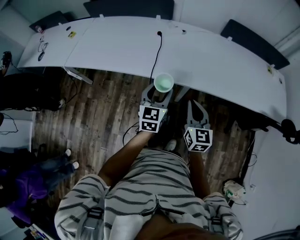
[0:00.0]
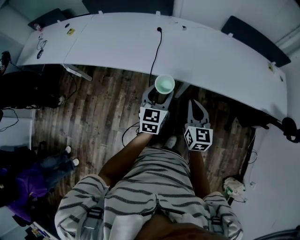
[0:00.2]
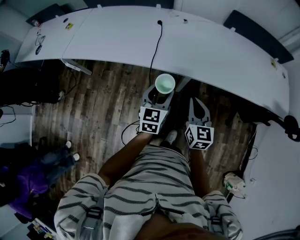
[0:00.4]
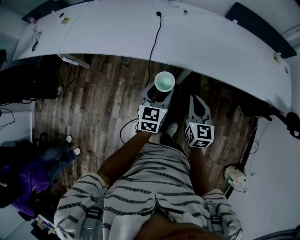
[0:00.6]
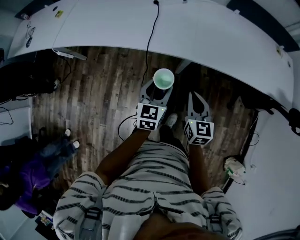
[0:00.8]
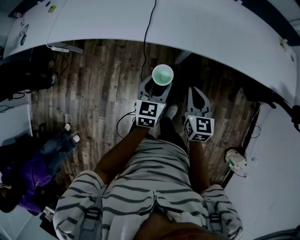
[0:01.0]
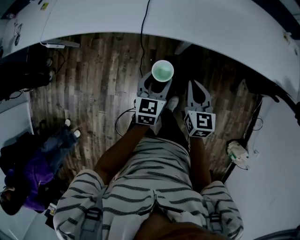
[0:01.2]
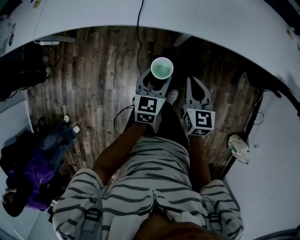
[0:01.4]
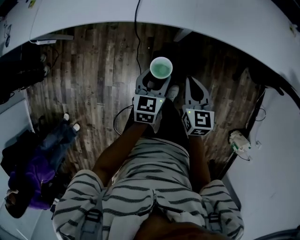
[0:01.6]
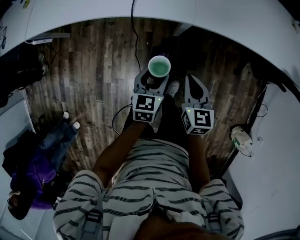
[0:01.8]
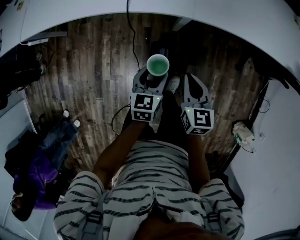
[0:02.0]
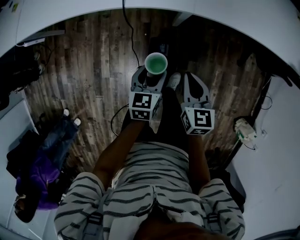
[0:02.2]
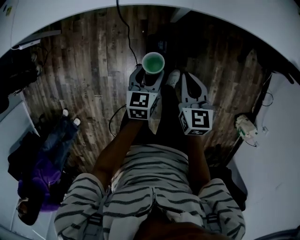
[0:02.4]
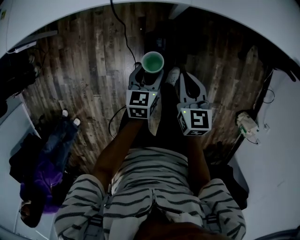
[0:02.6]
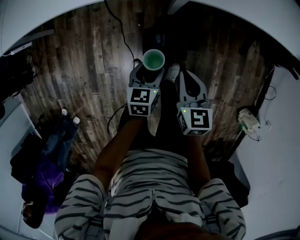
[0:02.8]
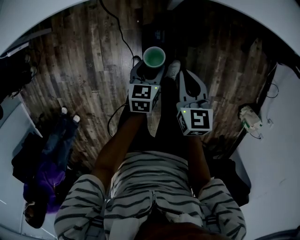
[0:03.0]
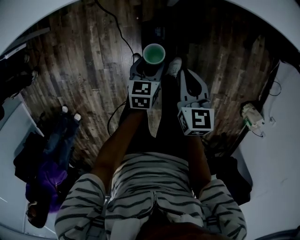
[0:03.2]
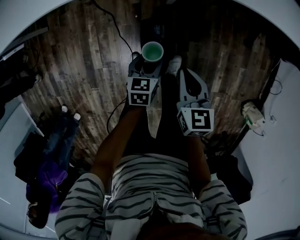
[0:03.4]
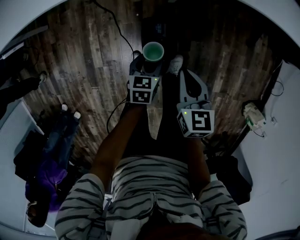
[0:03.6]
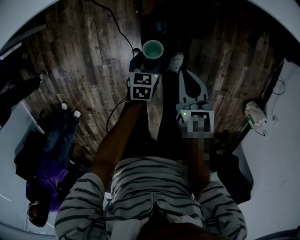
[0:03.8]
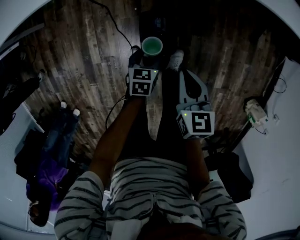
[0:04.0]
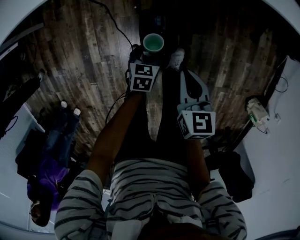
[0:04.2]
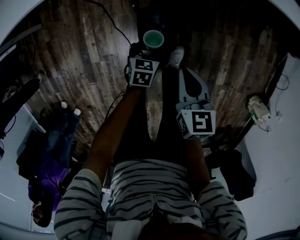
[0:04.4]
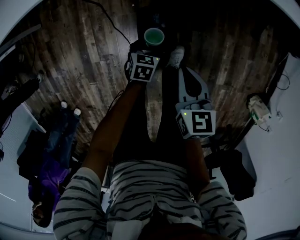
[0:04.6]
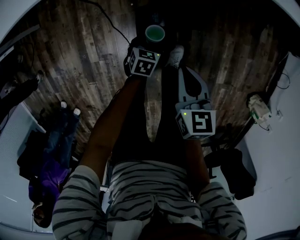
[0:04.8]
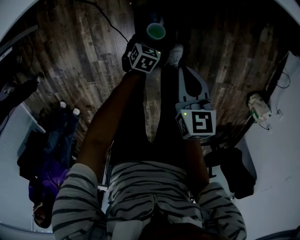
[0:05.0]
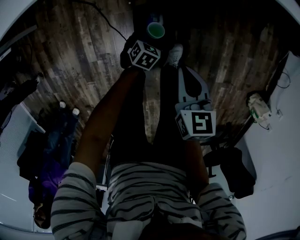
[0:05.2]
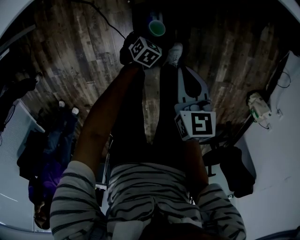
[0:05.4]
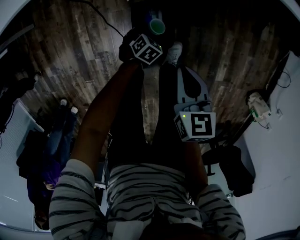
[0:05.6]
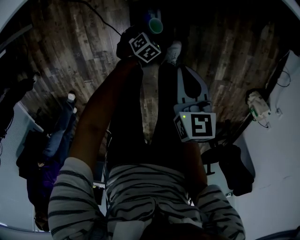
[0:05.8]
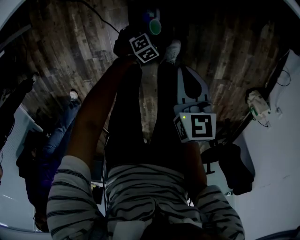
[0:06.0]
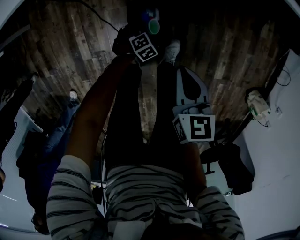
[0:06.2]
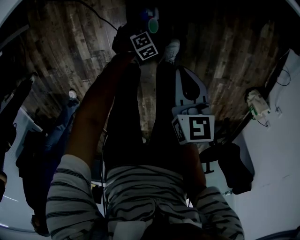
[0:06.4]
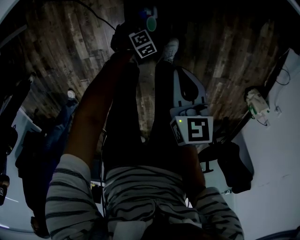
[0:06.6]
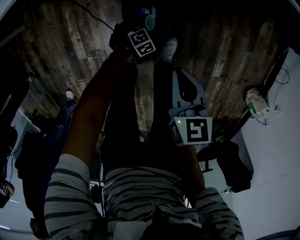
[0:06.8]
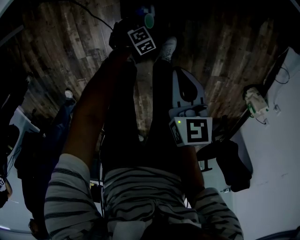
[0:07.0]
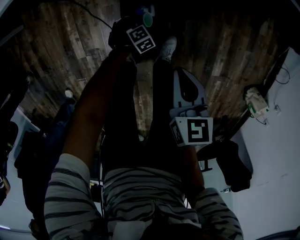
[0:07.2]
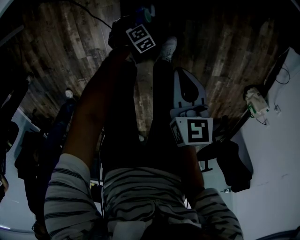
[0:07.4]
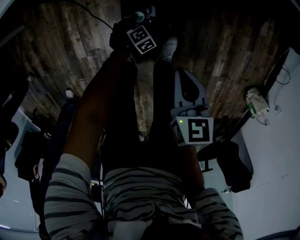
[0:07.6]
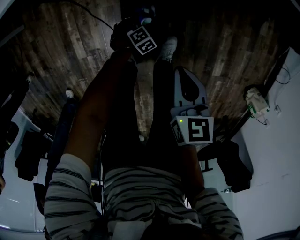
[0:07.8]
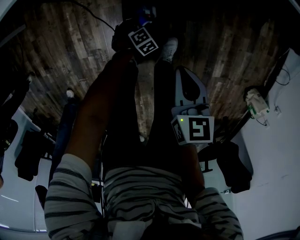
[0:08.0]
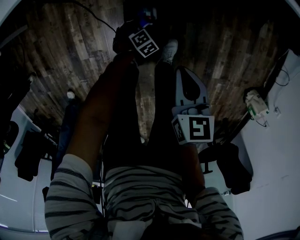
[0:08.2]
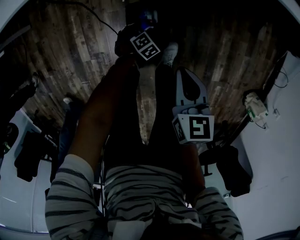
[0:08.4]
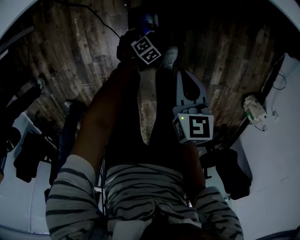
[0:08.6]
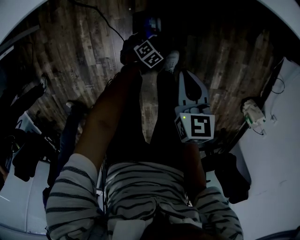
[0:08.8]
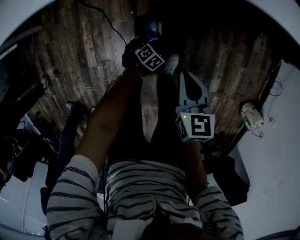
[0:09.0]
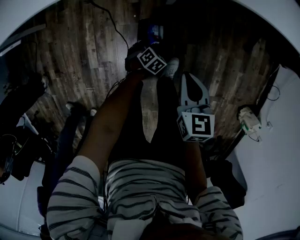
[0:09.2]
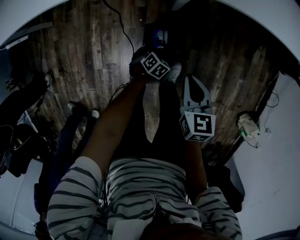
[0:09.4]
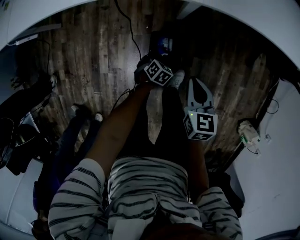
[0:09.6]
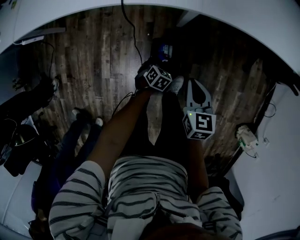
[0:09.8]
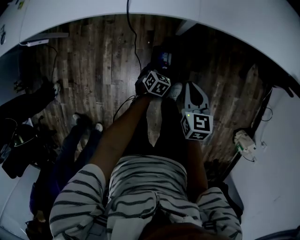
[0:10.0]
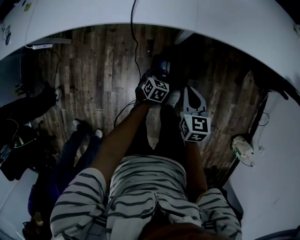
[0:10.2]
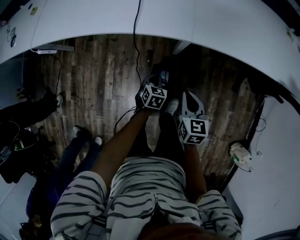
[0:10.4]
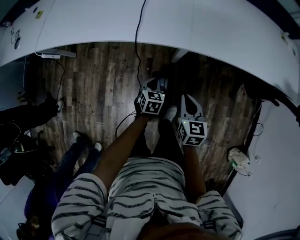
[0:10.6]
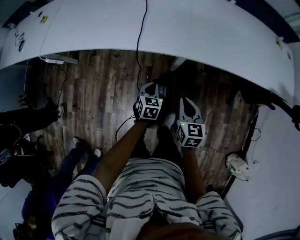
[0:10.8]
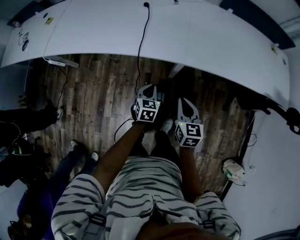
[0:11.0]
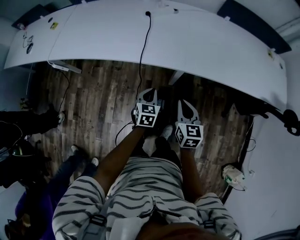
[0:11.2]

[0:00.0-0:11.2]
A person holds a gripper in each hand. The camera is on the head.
0:00.0 to 0:01.6: The right gripper goes approximately 15 cm downward; the left gripper goes roughly 20 cm downward and backward, and turns by approximately 20 degrees.
0:01.6 to 0:03.2: Both grippers move downward, approximately 20 cm.
0:03.2 to 0:04.8: The left gripper is displaced downward by about 20 cm, and changes its angle by some 20 degrees. Meanwhile the right gripper is displaced downward by about 5 cm.
0:04.8 to 0:06.4: The left gripper goes about 15 cm downward, and rotates around the line of its fingers by some 50 degrees, clockwise from behind.
0:06.4 to 0:08.0: The grippers stay close to where they were, moving slightly.
0:08.0 to 0:09.6: The left gripper is displaced upward by roughly 20 cm, changes its angle by some 30 degrees, and closes. The right gripper is displaced upward by about 10 cm.
0:09.6 to 0:11.2: The left gripper moves upward, approximately 35 cm, and tilts its fingers approximately 30 degrees upward. Meanwhile the right gripper heads upward, covering roughly 20 cm.

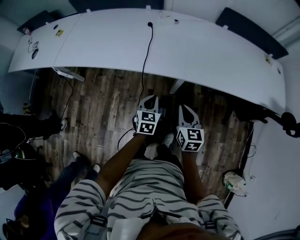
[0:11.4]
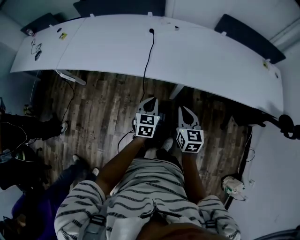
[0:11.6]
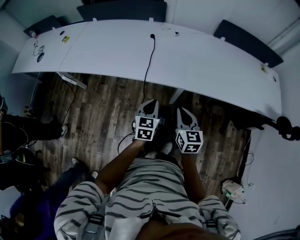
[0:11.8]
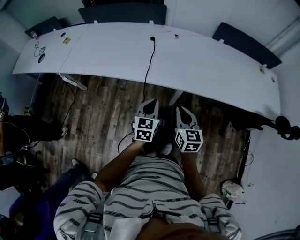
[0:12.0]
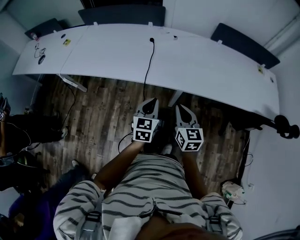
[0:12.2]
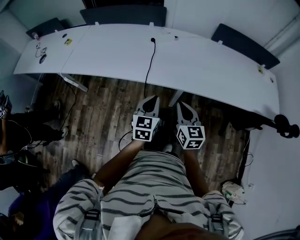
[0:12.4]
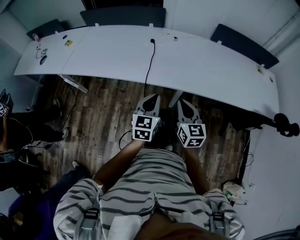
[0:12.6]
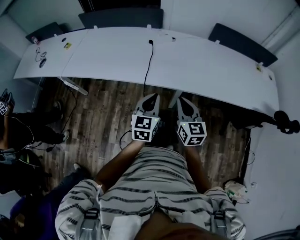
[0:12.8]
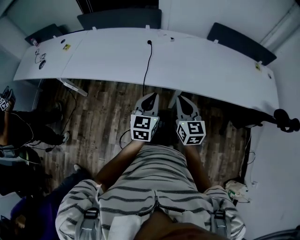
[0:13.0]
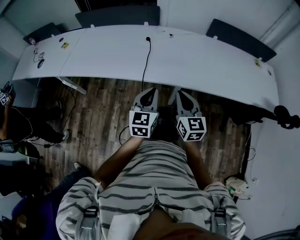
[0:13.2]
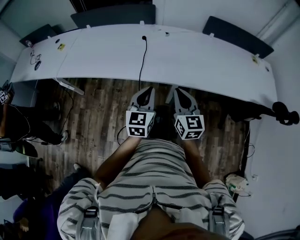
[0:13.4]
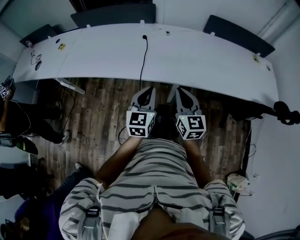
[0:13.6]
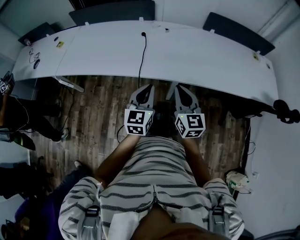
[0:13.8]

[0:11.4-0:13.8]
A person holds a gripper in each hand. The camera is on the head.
0:11.4 to 0:12.6: The left gripper shifts approximately 15 cm upward, while the right gripper heads upward, covering about 10 cm.
0:12.6 to 0:13.8: The grippers move only a little.

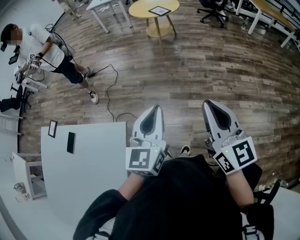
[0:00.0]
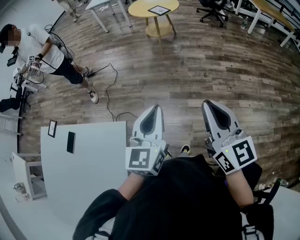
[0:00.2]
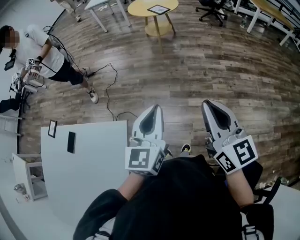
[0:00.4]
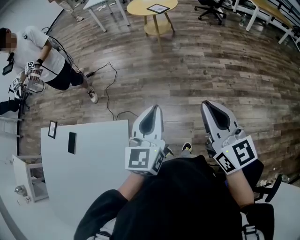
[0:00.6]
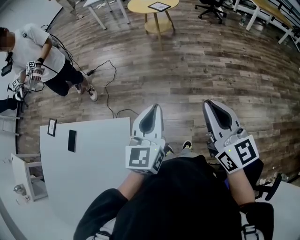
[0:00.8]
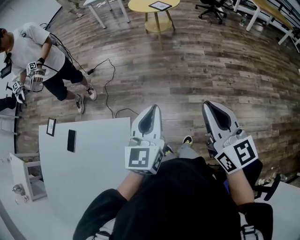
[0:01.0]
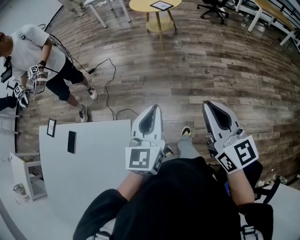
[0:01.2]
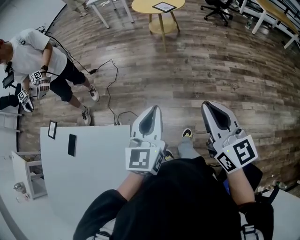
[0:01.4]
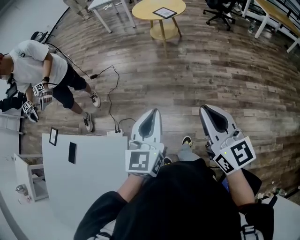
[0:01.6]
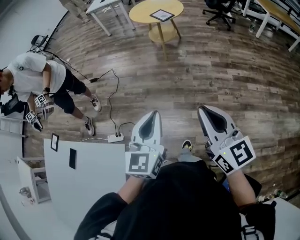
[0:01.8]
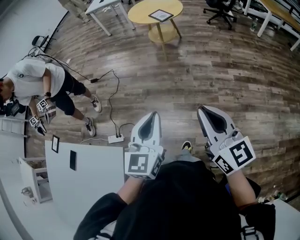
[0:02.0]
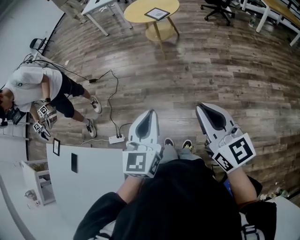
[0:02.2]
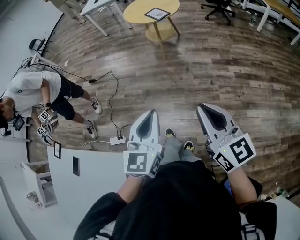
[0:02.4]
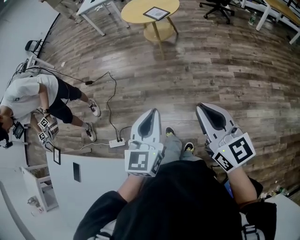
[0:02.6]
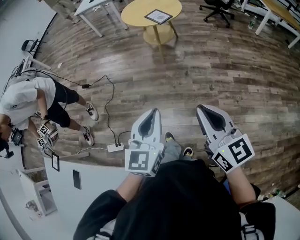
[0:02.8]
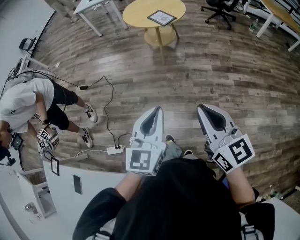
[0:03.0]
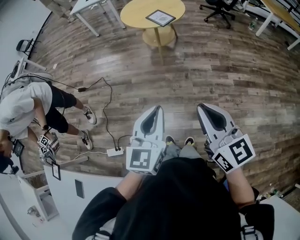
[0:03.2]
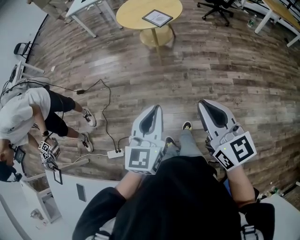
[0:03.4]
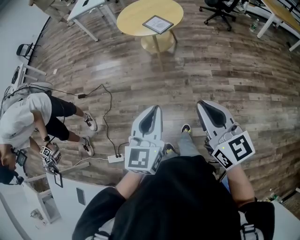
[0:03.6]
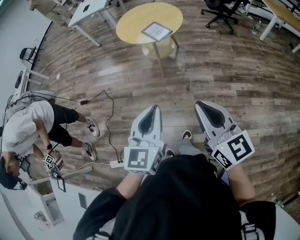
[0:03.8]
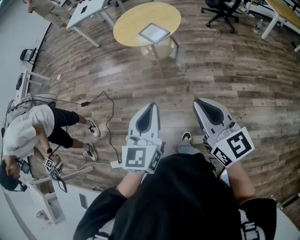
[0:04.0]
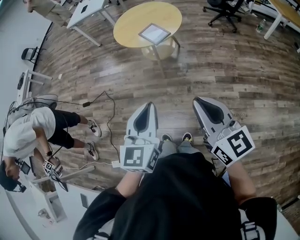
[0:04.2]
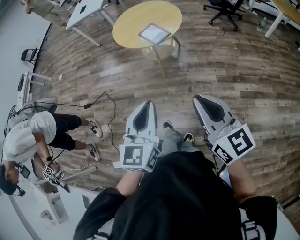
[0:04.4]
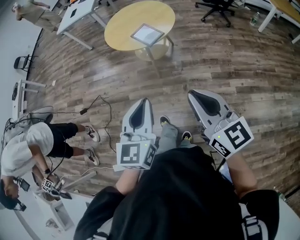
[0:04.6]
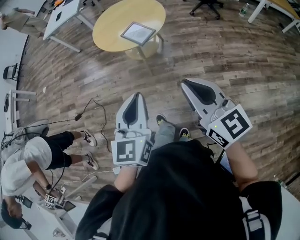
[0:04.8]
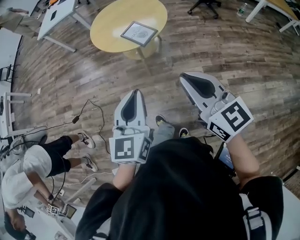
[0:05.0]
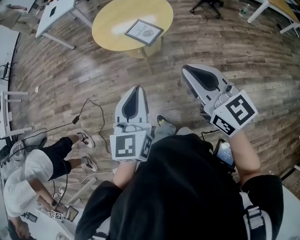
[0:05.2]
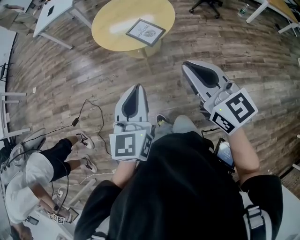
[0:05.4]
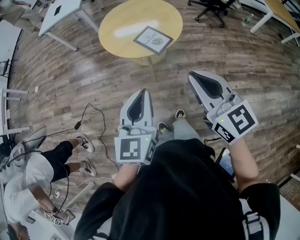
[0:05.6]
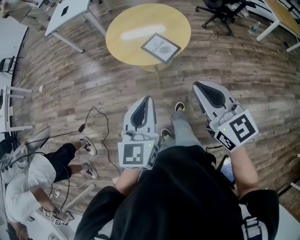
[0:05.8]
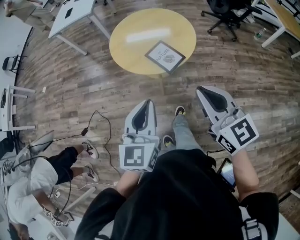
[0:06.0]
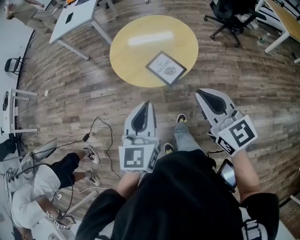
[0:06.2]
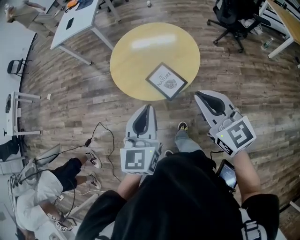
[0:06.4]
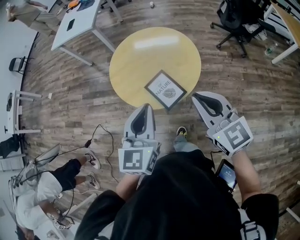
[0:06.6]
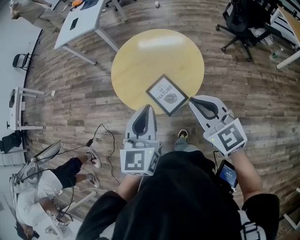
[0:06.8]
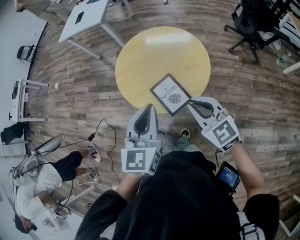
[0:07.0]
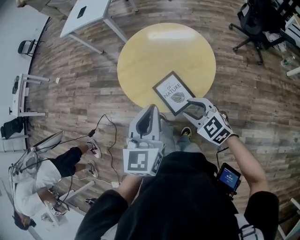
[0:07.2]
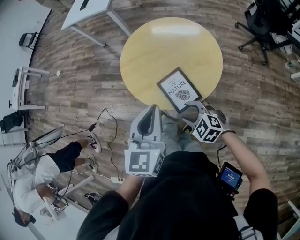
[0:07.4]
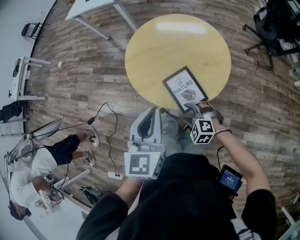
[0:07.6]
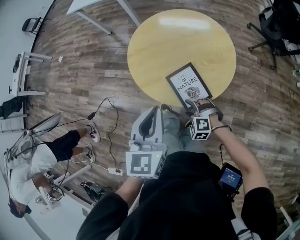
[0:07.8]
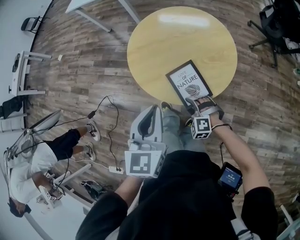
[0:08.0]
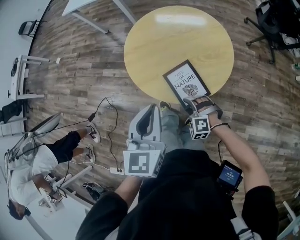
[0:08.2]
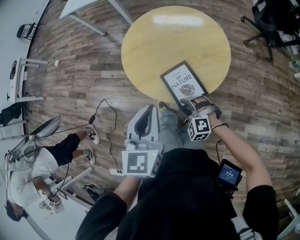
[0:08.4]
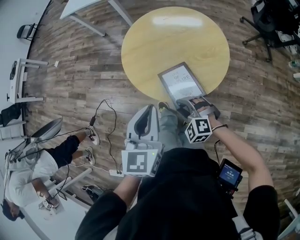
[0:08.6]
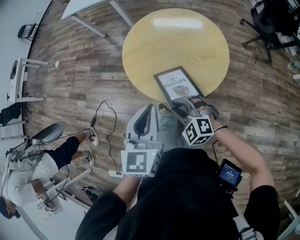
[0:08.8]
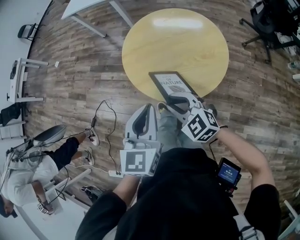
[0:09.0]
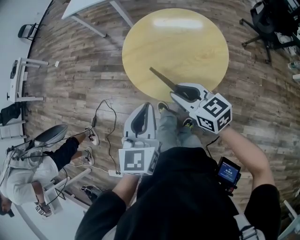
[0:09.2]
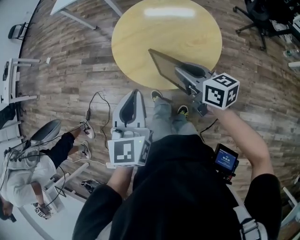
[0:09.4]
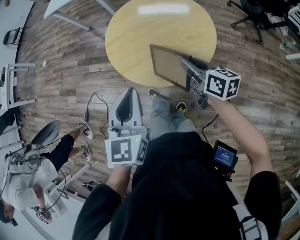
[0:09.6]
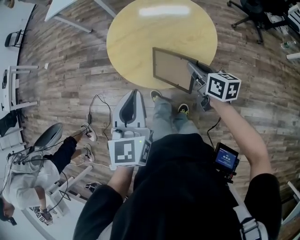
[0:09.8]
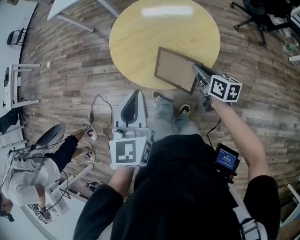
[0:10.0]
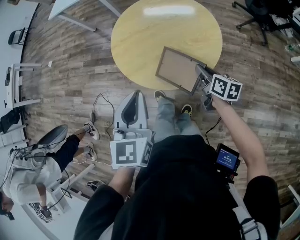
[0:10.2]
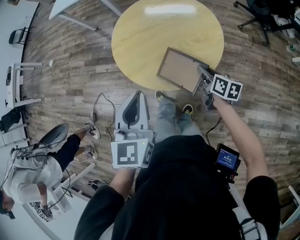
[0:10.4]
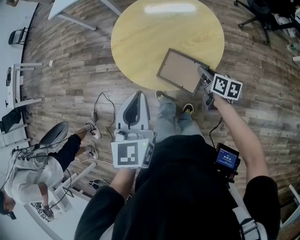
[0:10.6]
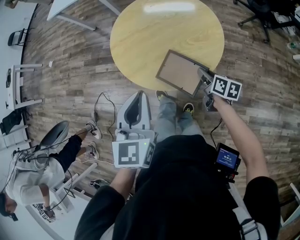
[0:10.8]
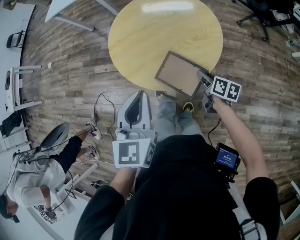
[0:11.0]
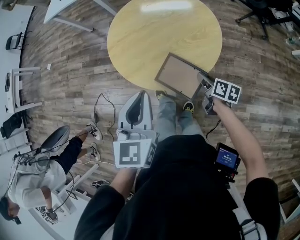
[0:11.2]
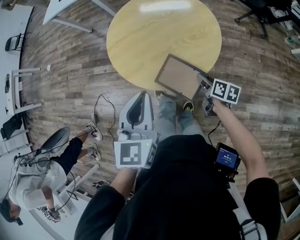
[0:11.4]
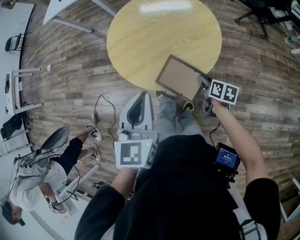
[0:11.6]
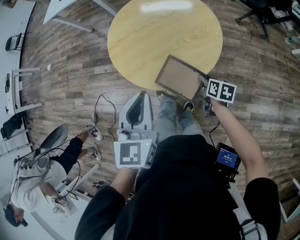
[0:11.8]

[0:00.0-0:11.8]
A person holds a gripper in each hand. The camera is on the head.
0:00.0 to 0:01.4: Both grippers travel together forward, approximately 5 cm.
0:01.4 to 0:03.0: The two grippers go some 30 cm forward.
0:03.0 to 0:04.4: Both grippers move forward and to the right, roughly 30 cm.
0:04.4 to 0:06.0: The two grippers go some 30 cm forward.
0:06.0 to 0:07.4: The right gripper heads downward, covering approximately 30 cm, tips its fingers downward by approximately 30 degrees, and opens its fingers, while the left gripper ends up about 25 cm from where it was.
0:07.4 to 0:08.8: The left gripper shifts by some 5 cm, while the right gripper heads to the left, covering roughly 5 cm, and reaches approximately 10 cm downward, then returns.
0:08.8 to 0:10.4: The right gripper moves to the right, approximately 20 cm, and rotates around the line of its fingers by approximately 90 degrees, clockwise from behind.
0:10.4 to 0:11.8: The right gripper shifts approximately 10 cm downward and backward.
